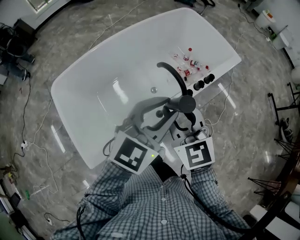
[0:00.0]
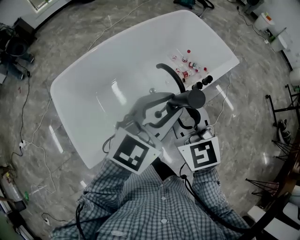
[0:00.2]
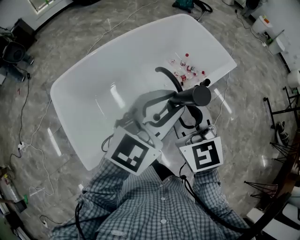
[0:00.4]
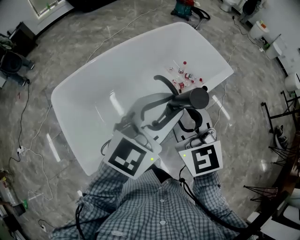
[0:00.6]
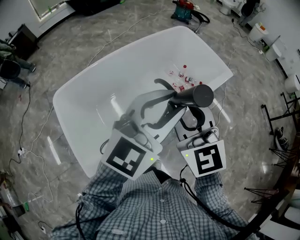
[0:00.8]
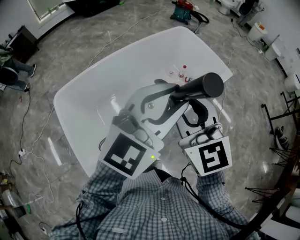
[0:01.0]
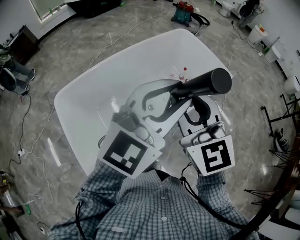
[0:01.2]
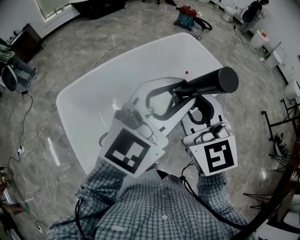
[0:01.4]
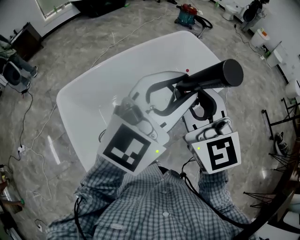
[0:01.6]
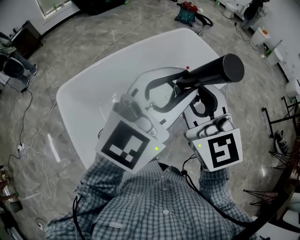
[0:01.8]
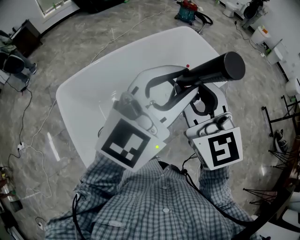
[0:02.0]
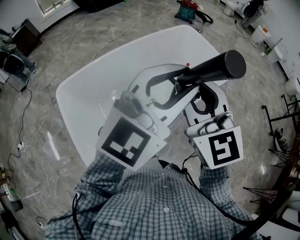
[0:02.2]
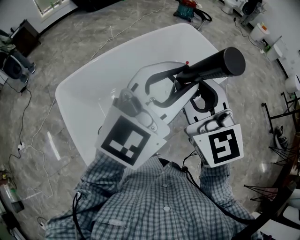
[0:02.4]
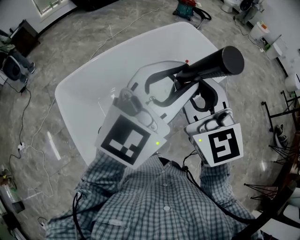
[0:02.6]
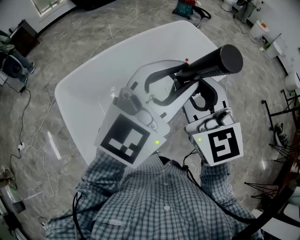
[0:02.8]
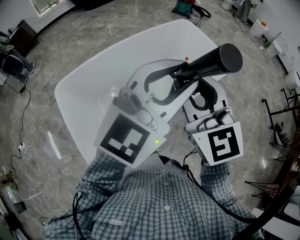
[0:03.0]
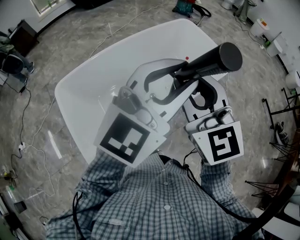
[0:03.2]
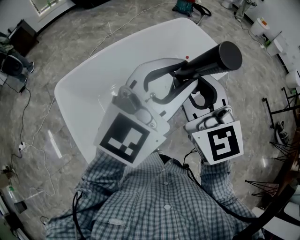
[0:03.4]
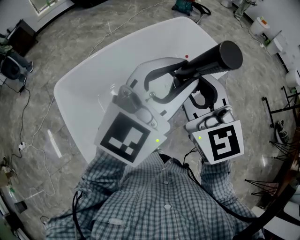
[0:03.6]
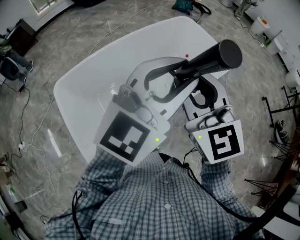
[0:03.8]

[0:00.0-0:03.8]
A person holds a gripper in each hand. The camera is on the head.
0:00.0 to 0:01.2: Both grippers travel together upward, about 15 cm.
0:01.2 to 0:02.6: The grippers make only small movements.
0:02.6 to 0:03.8: Both grippers stay put.

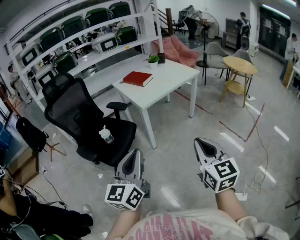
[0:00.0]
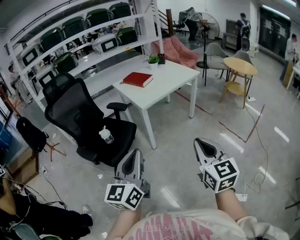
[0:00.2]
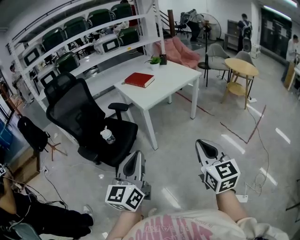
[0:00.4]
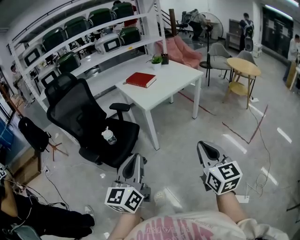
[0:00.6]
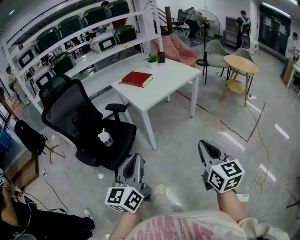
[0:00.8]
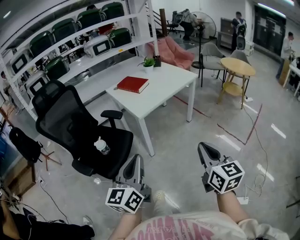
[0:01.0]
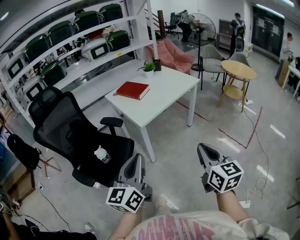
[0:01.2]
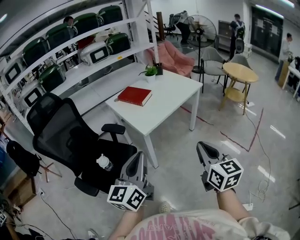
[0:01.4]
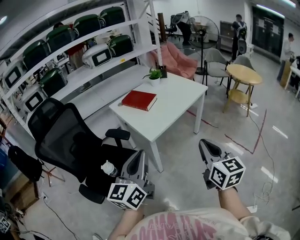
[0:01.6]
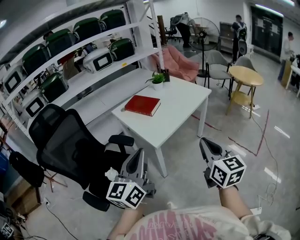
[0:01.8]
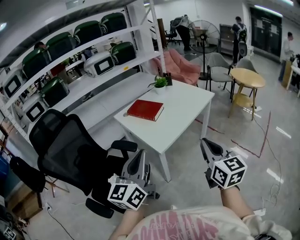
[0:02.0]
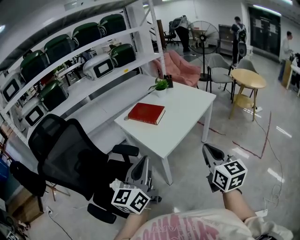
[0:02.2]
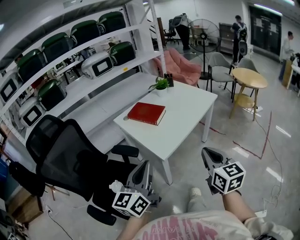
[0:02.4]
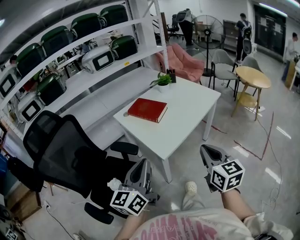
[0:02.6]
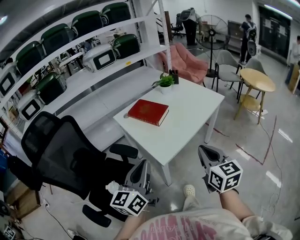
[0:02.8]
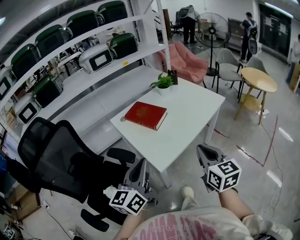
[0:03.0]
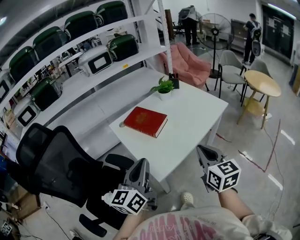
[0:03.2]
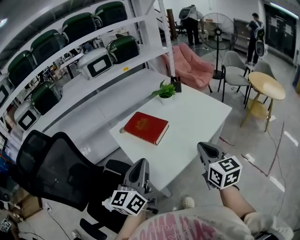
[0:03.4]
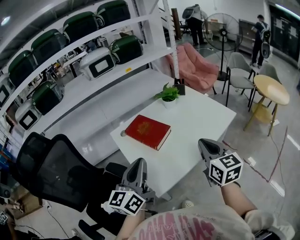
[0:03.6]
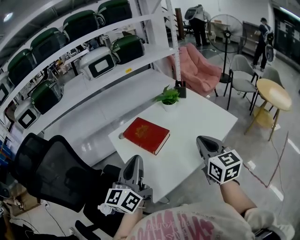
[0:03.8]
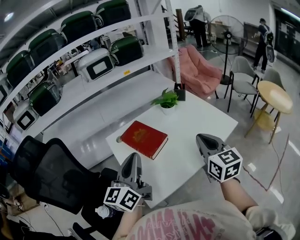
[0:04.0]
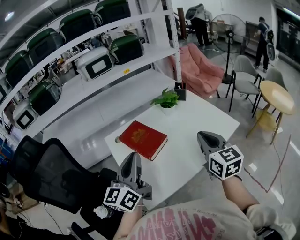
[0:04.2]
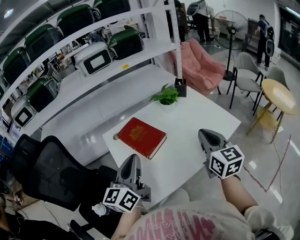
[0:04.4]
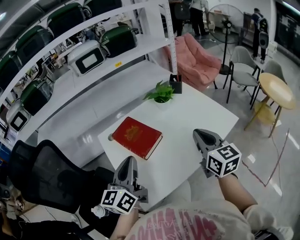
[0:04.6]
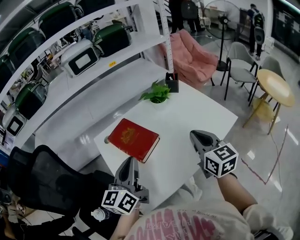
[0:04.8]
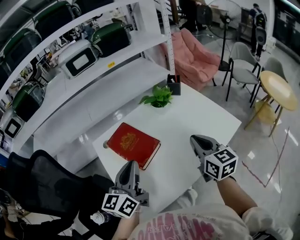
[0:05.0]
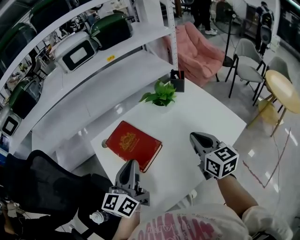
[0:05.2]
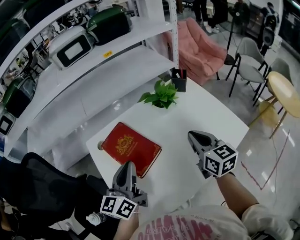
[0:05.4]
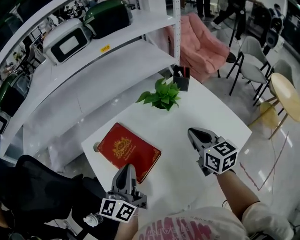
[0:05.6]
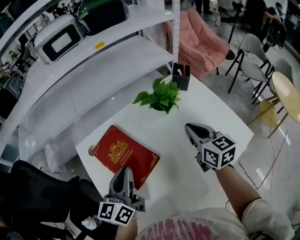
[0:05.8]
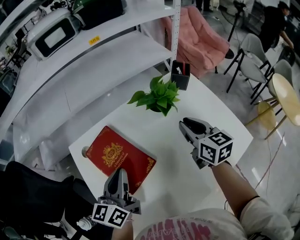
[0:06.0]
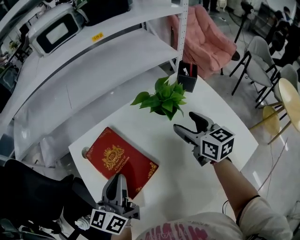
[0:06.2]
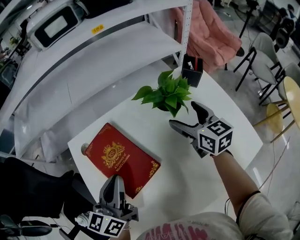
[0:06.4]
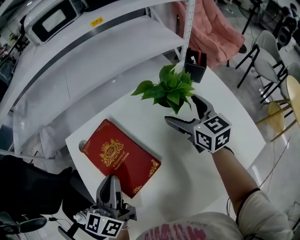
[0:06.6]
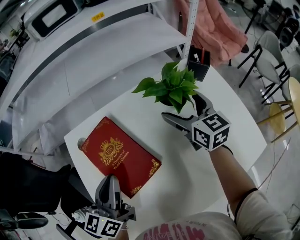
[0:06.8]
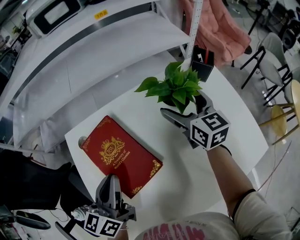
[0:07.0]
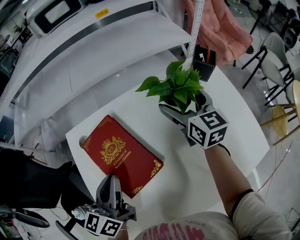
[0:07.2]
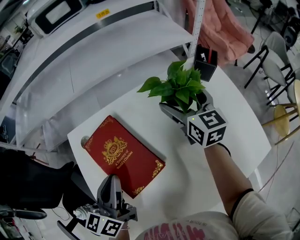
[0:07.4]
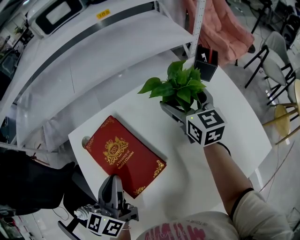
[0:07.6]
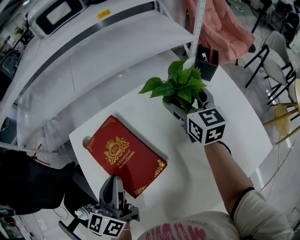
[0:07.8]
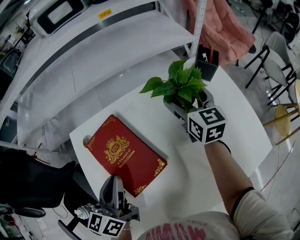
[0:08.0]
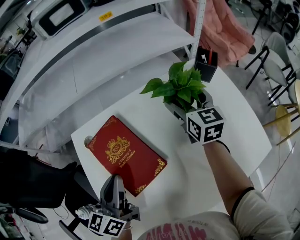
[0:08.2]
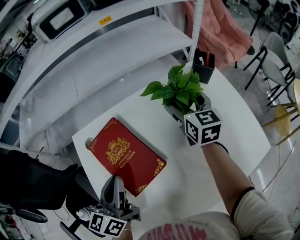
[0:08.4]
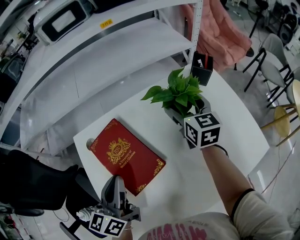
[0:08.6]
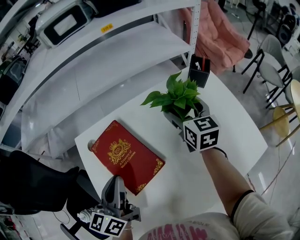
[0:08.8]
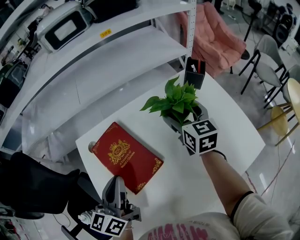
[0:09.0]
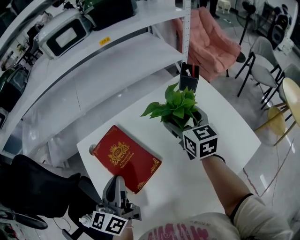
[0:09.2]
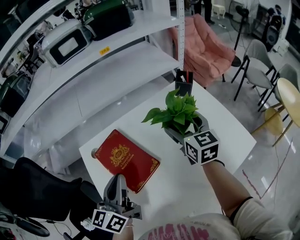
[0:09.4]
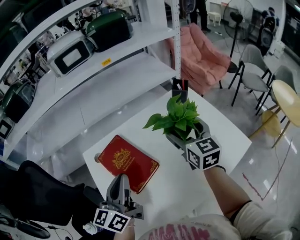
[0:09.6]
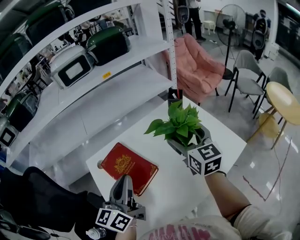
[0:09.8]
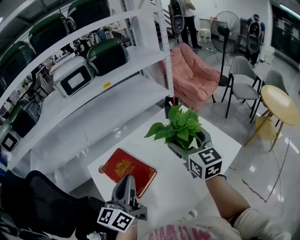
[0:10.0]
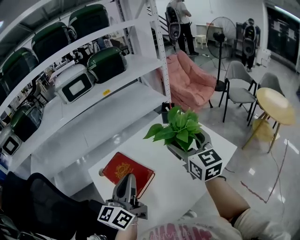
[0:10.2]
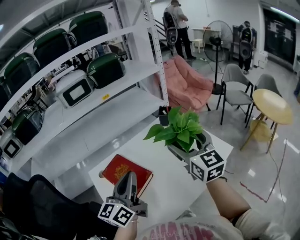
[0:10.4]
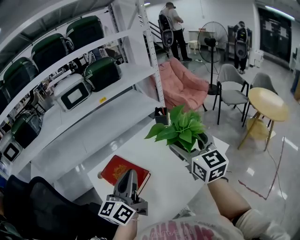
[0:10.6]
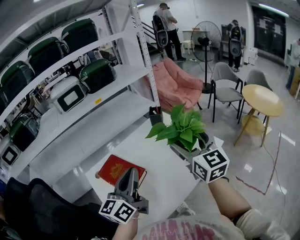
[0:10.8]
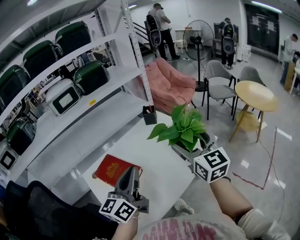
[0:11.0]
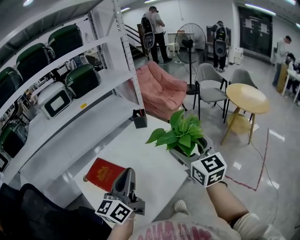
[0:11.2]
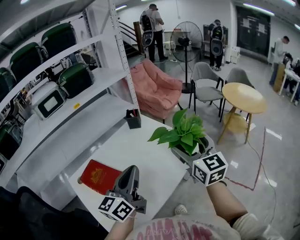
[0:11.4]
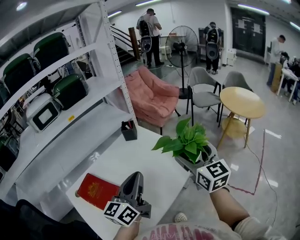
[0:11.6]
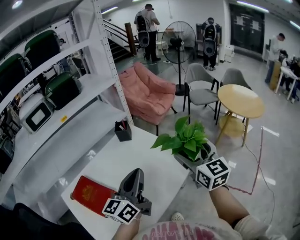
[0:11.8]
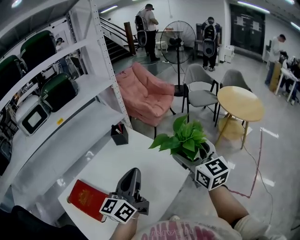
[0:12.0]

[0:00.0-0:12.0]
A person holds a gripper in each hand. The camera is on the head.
0:00.0 to 0:01.6: The grippers both shift forward by some 30 cm.
0:01.6 to 0:03.0: The two grippers go some 25 cm forward.
0:03.0 to 0:04.4: Both grippers move forward, roughly 30 cm.
0:04.4 to 0:06.0: Both grippers travel together forward and downward, roughly 35 cm.
0:06.0 to 0:07.6: The right gripper goes roughly 15 cm forward, and opens up.
0:07.6 to 0:09.0: The right gripper moves backward, some 5 cm.
0:09.0 to 0:10.4: The right gripper goes roughly 35 cm upward and backward, and turns by roughly 20 degrees, while the left gripper shifts approximately 20 cm upward, to the right and backward, and changes its angle by approximately 20 degrees.
0:10.4 to 0:12.0: The right gripper travels to the right by some 30 cm. Meanwhile the left gripper is displaced to the right and forward by about 30 cm.

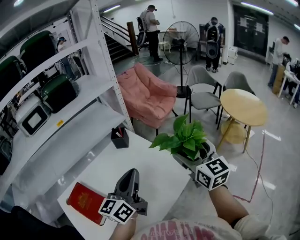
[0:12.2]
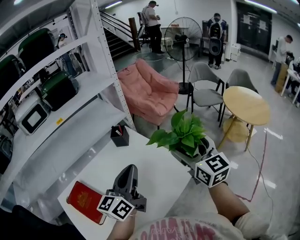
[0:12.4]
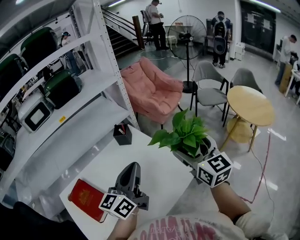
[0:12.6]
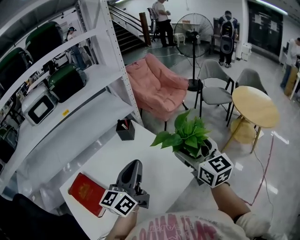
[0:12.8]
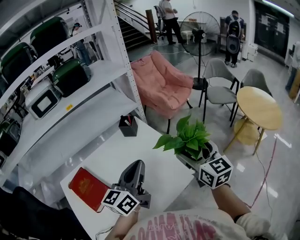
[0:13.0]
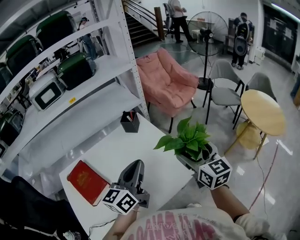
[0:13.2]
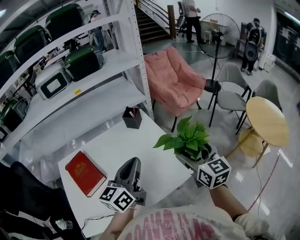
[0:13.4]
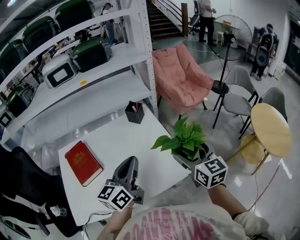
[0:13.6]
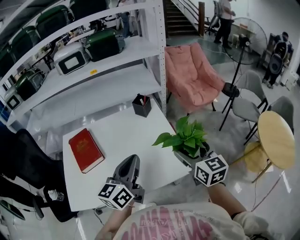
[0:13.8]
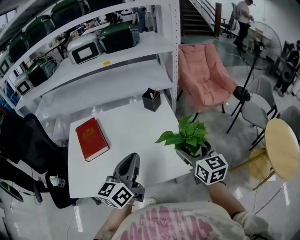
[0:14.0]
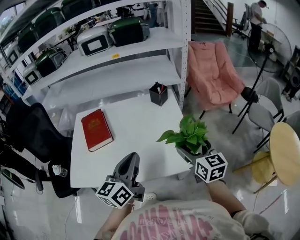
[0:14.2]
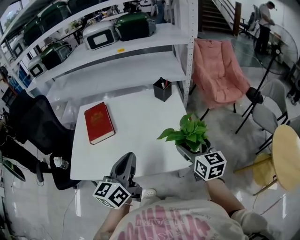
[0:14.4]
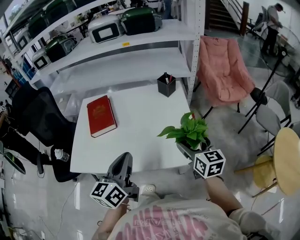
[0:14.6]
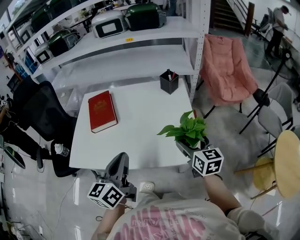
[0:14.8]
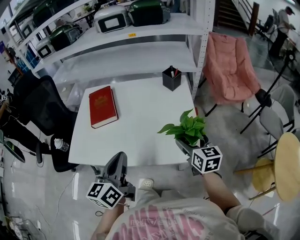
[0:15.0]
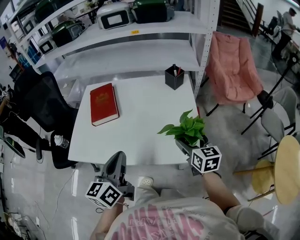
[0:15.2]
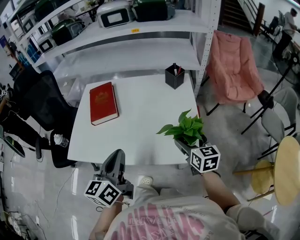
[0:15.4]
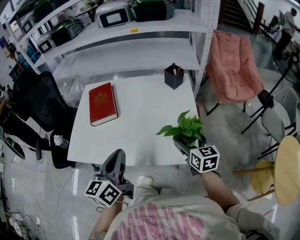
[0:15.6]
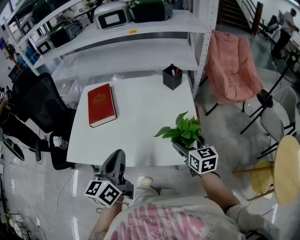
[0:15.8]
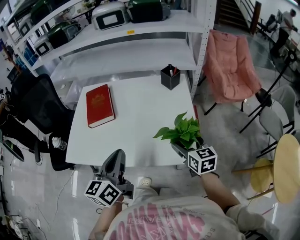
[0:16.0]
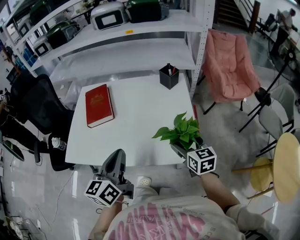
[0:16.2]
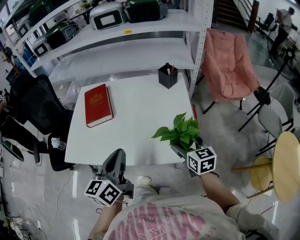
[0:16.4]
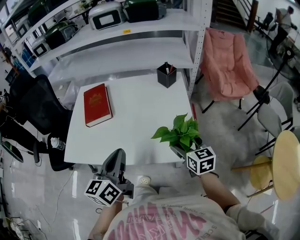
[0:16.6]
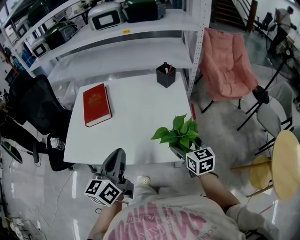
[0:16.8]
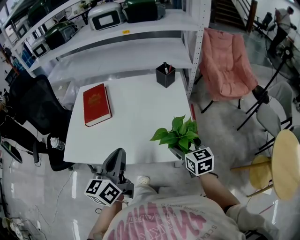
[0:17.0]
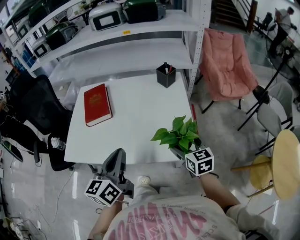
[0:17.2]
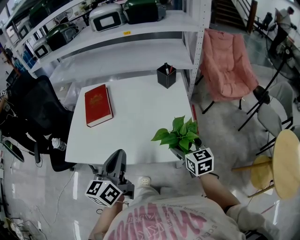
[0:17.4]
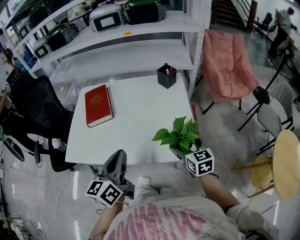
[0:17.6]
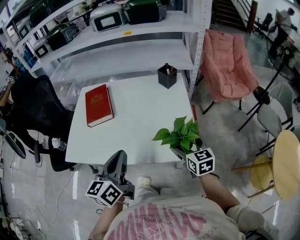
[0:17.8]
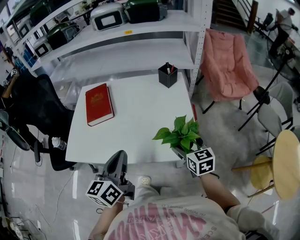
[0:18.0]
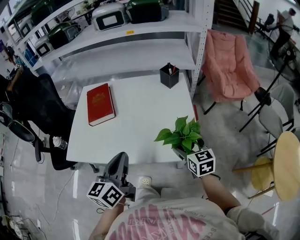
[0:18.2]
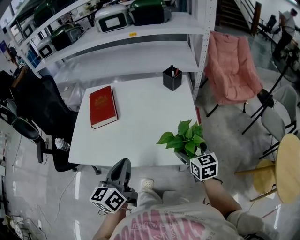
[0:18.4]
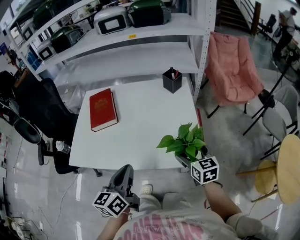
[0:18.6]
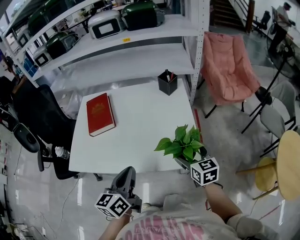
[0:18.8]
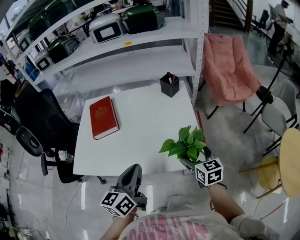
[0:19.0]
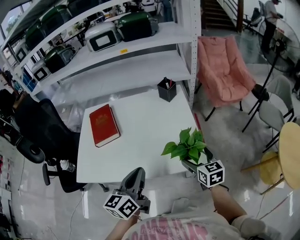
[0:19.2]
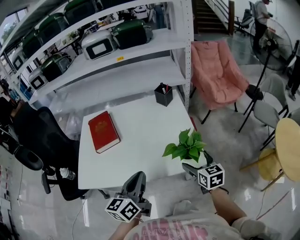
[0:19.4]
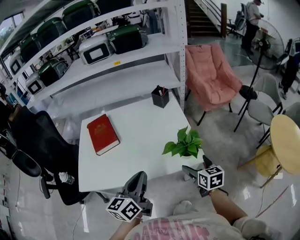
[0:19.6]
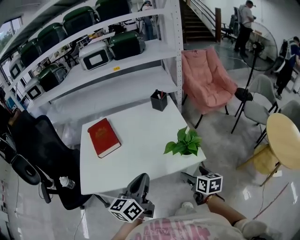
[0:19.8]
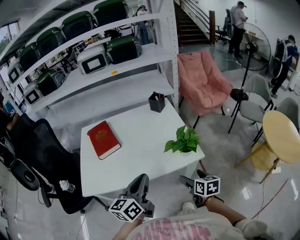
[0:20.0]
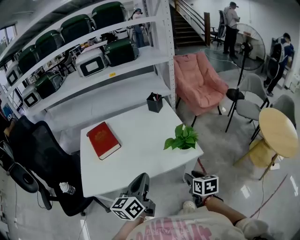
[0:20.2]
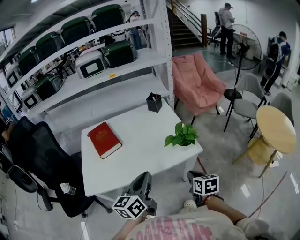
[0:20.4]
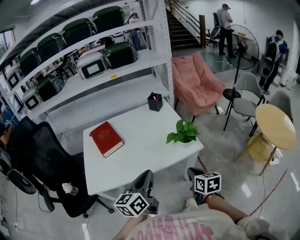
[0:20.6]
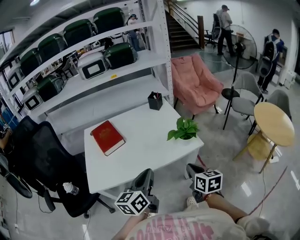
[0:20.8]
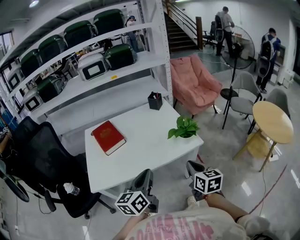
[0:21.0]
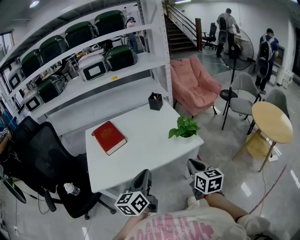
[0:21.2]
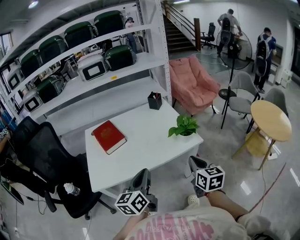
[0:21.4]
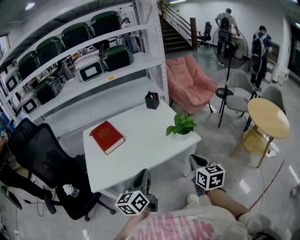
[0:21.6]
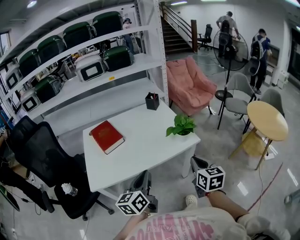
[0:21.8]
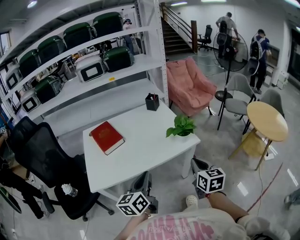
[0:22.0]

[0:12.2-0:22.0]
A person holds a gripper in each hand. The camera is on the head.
0:12.2 to 0:13.6: The left gripper ends up some 5 cm from where it was, and turns by about 20 degrees. Meanwhile the right gripper goes some 5 cm downward, and turns by some 30 degrees.
0:13.6 to 0:15.0: The right gripper heads downward, covering roughly 10 cm, and swivels roughly 20 degrees. Meanwhile the left gripper shifts by about 15 cm, and turns by about 30 degrees.
0:15.0 to 0:17.8: The grippers move only a little.
0:17.8 to 0:19.2: The grippers stay close to where they were, moving slightly.
0:19.2 to 0:20.6: The right gripper goes approximately 25 cm backward, changes its angle by roughly 20 degrees, and closes. Meanwhile the left gripper goes approximately 15 cm backward and to the left.
0:20.6 to 0:22.0: The left gripper is displaced backward by approximately 5 cm, while the right gripper goes about 10 cm upward and backward.
